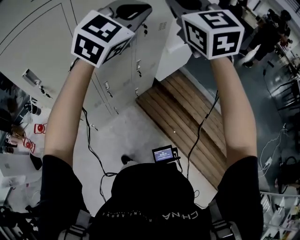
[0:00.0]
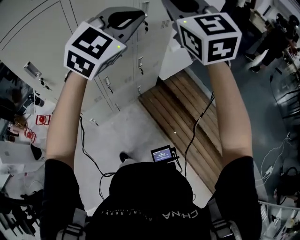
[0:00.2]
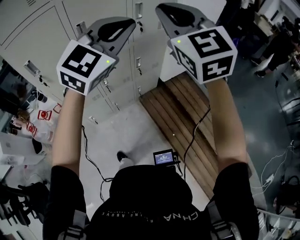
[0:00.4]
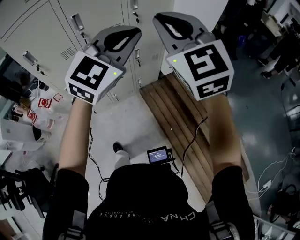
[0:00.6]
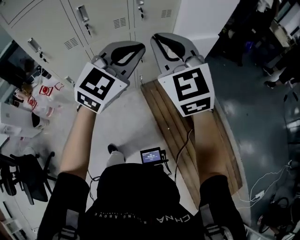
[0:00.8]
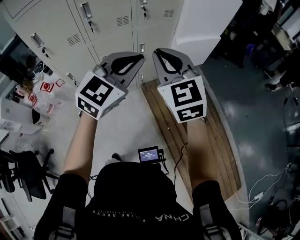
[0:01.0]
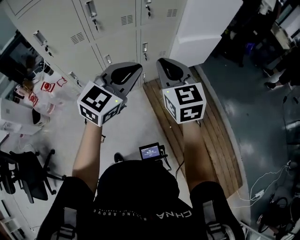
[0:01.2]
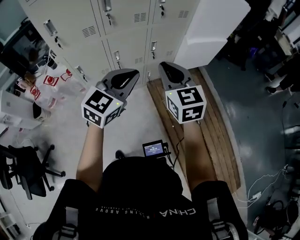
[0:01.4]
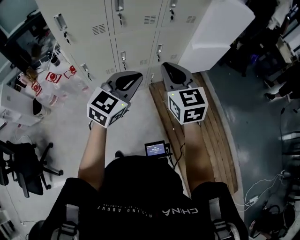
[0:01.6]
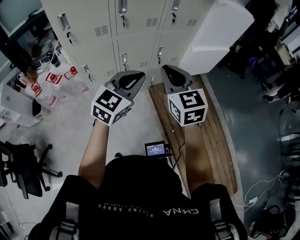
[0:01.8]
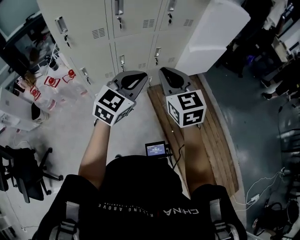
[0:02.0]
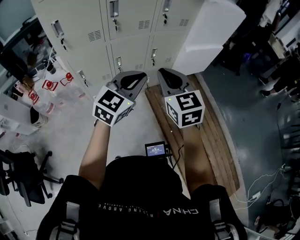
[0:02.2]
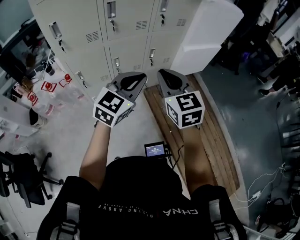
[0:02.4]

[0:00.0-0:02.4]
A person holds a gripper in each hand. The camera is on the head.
0.0 to 1.2 s: Both grippers move downward, backward and to the right, roughly 30 cm. The right gripper rotates approximately 30 degrees; the left gripper rotates roughly 30 degrees.
1.2 to 2.4 s: The grippers both shift to the left by about 10 cm.

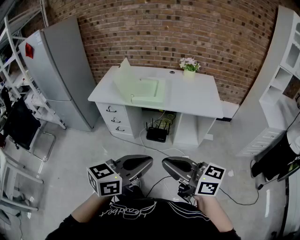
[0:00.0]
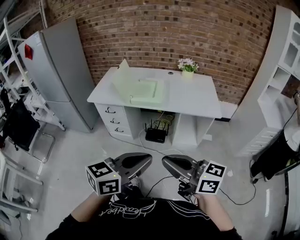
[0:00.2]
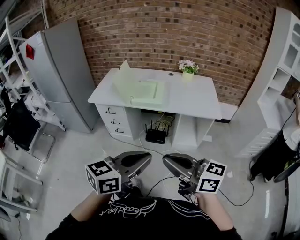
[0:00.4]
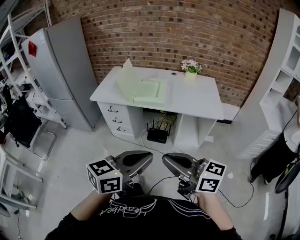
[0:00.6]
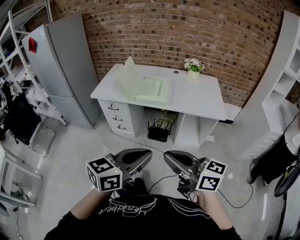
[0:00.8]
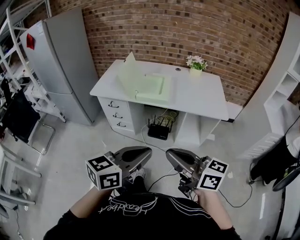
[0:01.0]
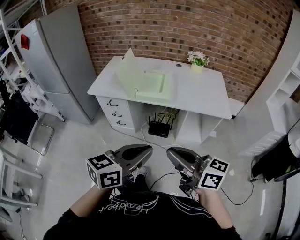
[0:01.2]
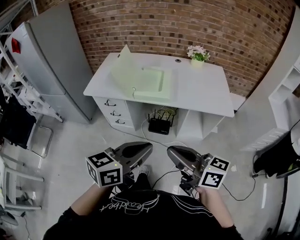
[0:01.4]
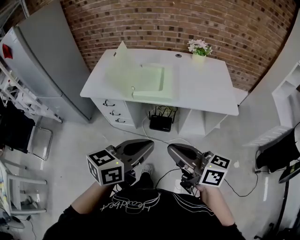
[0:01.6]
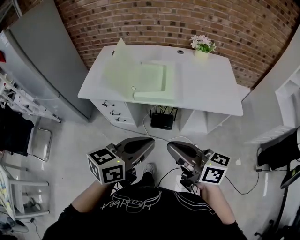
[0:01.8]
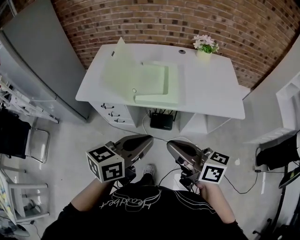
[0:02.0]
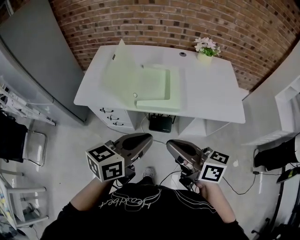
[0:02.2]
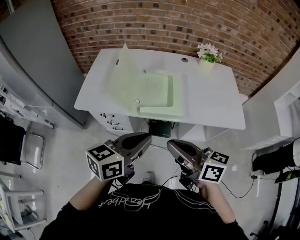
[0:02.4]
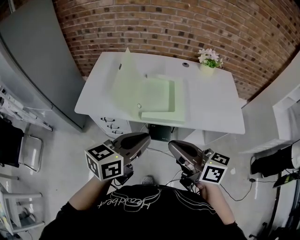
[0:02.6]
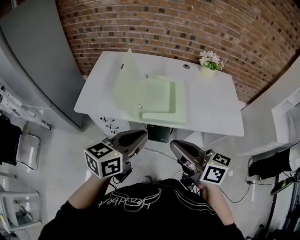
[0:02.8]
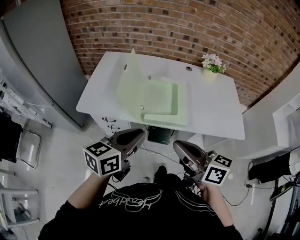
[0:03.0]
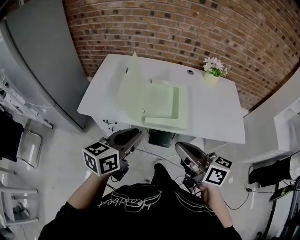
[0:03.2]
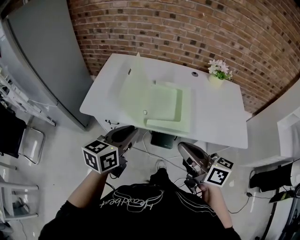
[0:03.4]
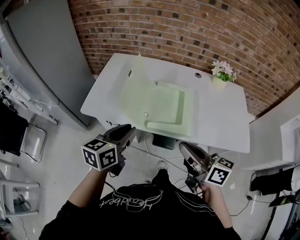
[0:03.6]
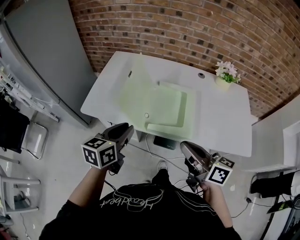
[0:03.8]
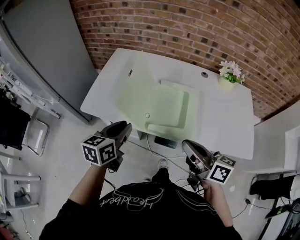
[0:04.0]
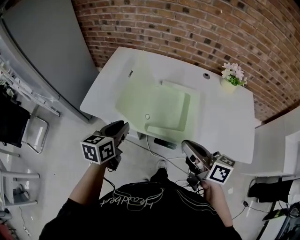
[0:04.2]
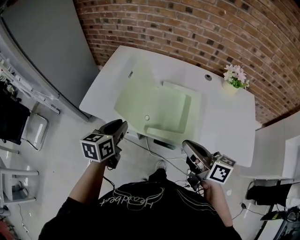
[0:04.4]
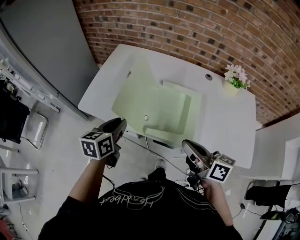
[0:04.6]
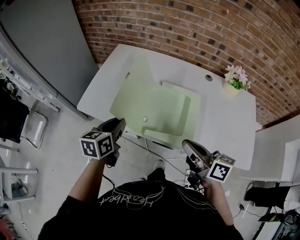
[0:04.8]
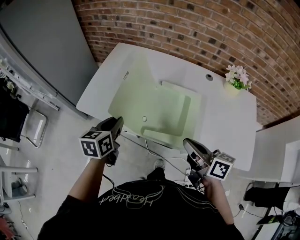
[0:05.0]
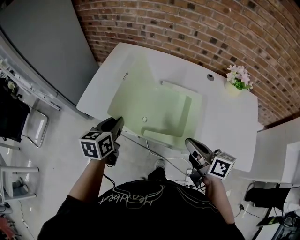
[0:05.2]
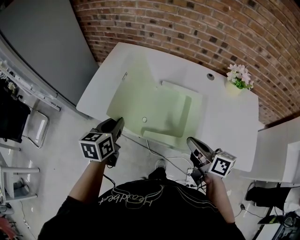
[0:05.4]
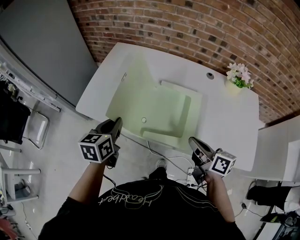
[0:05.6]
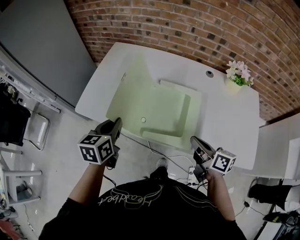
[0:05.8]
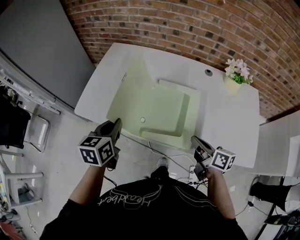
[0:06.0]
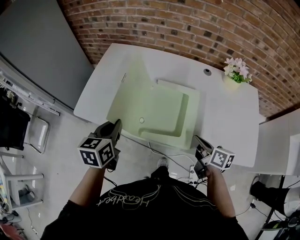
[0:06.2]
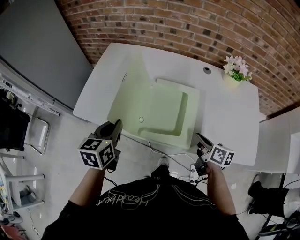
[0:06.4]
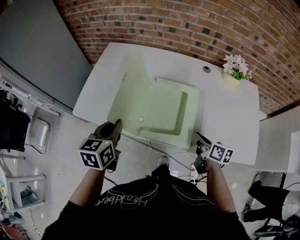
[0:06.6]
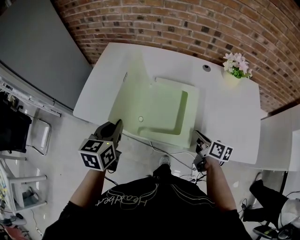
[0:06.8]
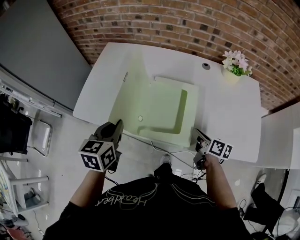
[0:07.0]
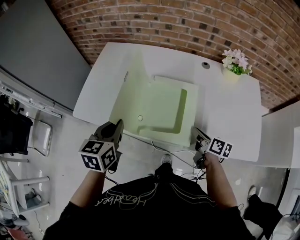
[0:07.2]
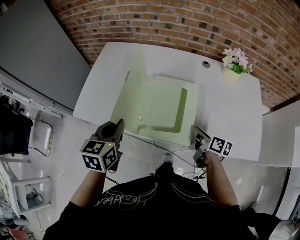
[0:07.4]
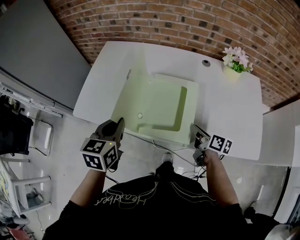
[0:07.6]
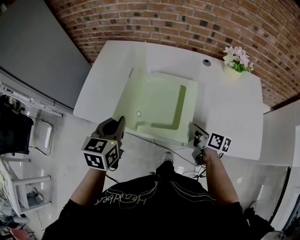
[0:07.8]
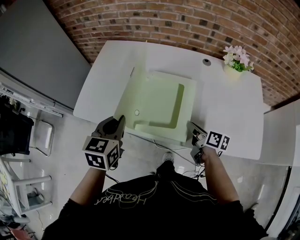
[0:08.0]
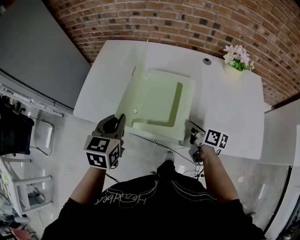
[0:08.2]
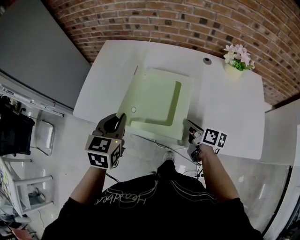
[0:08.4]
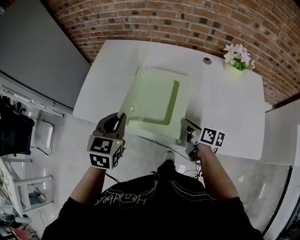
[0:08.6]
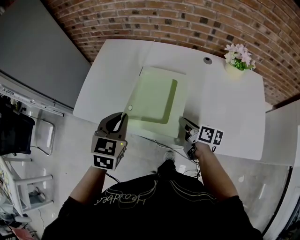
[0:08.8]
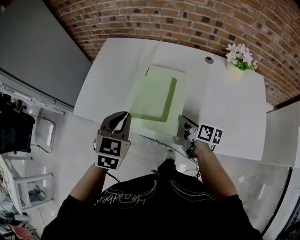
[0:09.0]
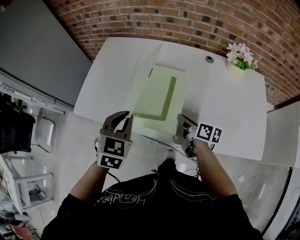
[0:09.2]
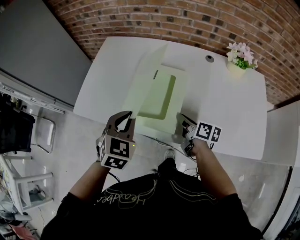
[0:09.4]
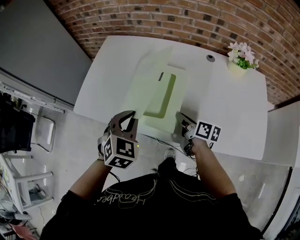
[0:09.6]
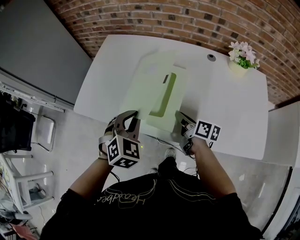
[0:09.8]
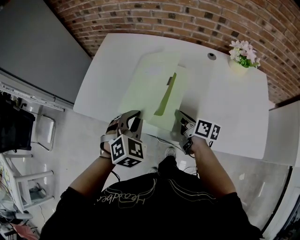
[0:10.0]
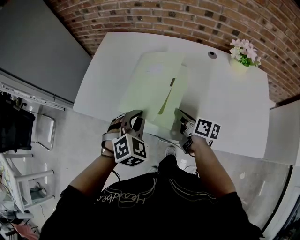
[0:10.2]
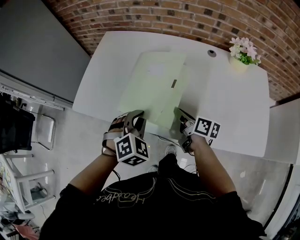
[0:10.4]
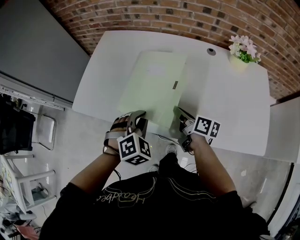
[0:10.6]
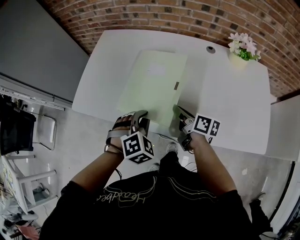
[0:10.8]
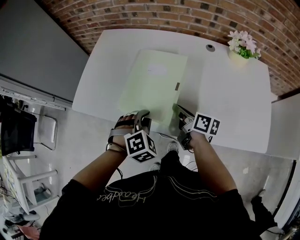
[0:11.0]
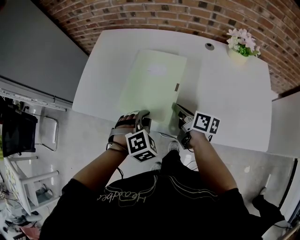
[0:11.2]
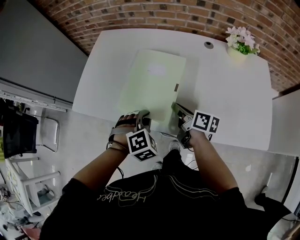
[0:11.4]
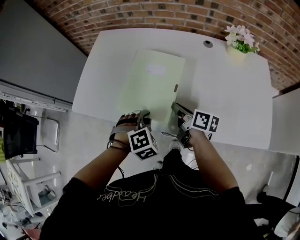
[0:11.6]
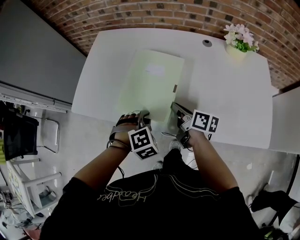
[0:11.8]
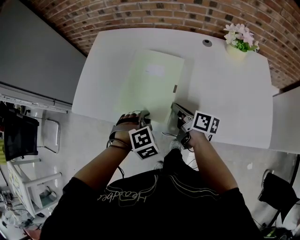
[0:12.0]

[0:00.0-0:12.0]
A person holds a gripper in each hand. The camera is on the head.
0.0 to 1.6 s: Both grippers move forward, roughly 20 cm.
1.6 to 3.0 s: Both grippers move forward and to the left, about 20 cm.
3.0 to 4.4 s: The left gripper heads forward, downward and to the left, covering some 20 cm, and swivels some 30 degrees; the right gripper shifts some 15 cm forward and to the right.
4.4 to 6.0 s: The right gripper goes about 15 cm downward and to the right.
6.0 to 7.6 s: The right gripper shifts some 10 cm downward.
7.6 to 9.0 s: The right gripper is displaced to the left by approximately 5 cm; the left gripper swivels about 20 degrees.
9.0 to 10.4 s: The left gripper heads downward, covering approximately 5 cm, and turns by roughly 30 degrees.
10.4 to 12.0 s: The left gripper heads downward, covering roughly 5 cm, and turns by some 20 degrees.

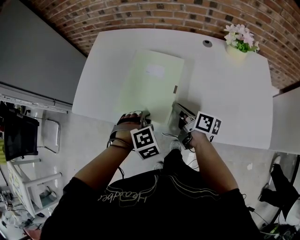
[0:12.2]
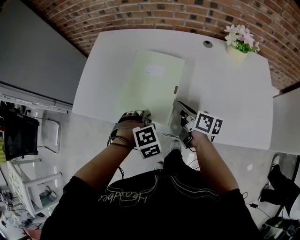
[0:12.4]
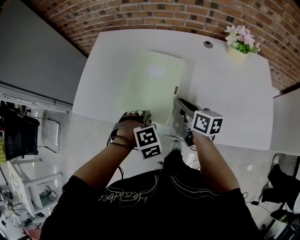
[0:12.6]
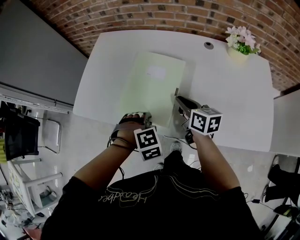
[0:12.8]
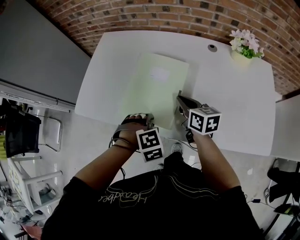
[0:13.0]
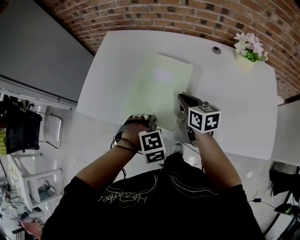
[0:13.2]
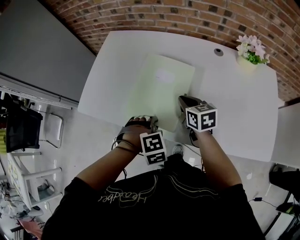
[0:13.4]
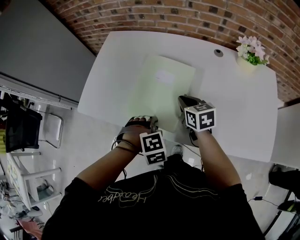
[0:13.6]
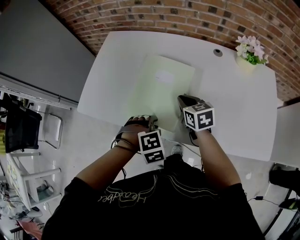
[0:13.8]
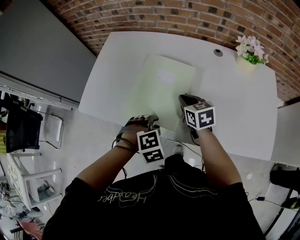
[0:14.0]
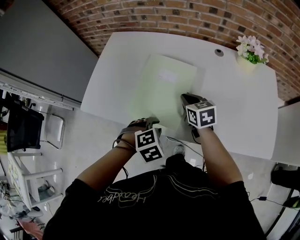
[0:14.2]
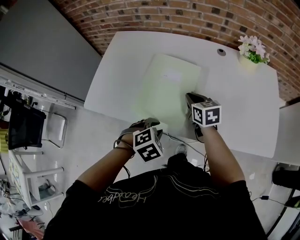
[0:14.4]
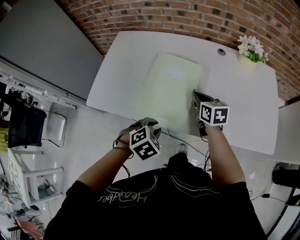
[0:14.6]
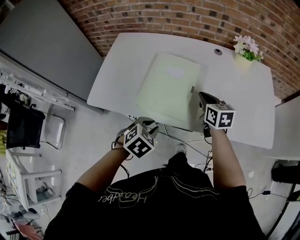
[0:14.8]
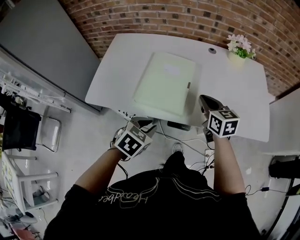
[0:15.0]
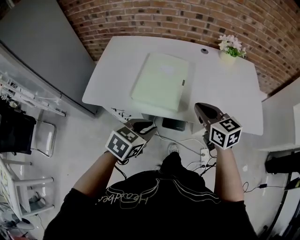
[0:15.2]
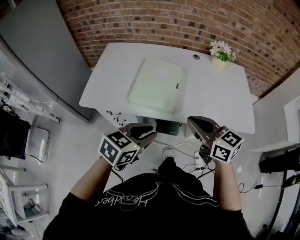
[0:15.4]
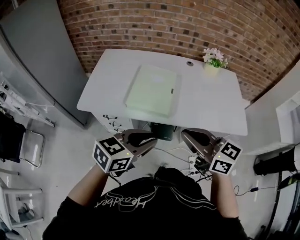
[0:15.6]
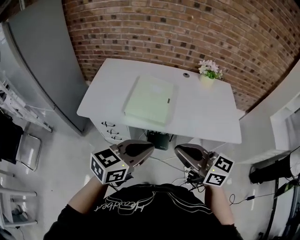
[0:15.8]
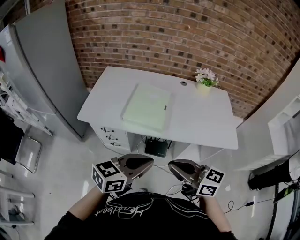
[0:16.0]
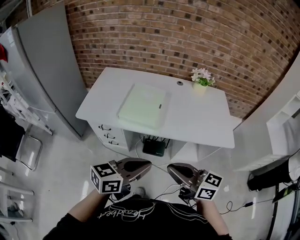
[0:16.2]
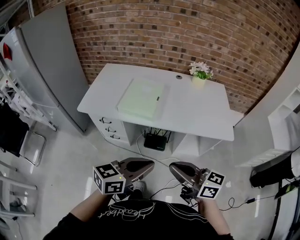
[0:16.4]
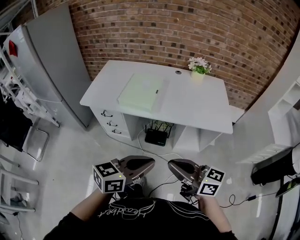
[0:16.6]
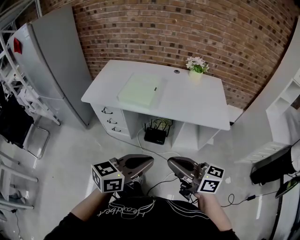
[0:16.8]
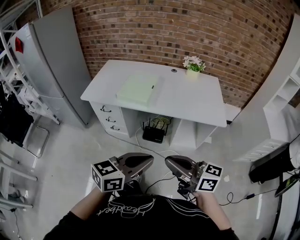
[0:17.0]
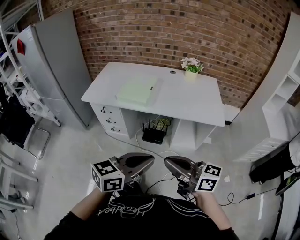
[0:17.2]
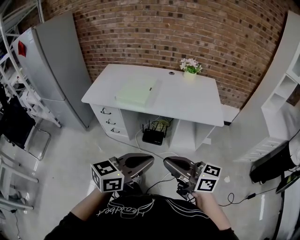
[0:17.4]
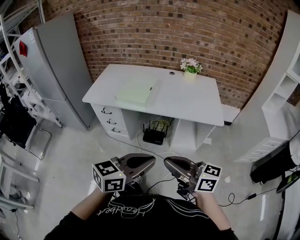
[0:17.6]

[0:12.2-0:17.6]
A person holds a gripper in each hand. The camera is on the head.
12.2 to 13.6 s: The right gripper heads forward, covering approximately 5 cm, and rolls counterclockwise, seen from behind, by roughly 50 degrees.
13.6 to 15.0 s: The right gripper moves approximately 15 cm. The left gripper moves some 10 cm, and rotates roughly 50 degrees.
15.0 to 16.2 s: The left gripper heads backward, upward and to the right, covering some 25 cm, tips its fingers upward by approximately 50 degrees, and closes its fingers. Meanwhile the right gripper travels backward and upward by approximately 35 cm, and rotates roughly 40 degrees.
16.2 to 17.6 s: The two grippers go some 20 cm backward and to the right.

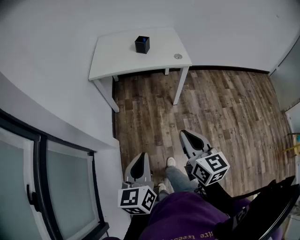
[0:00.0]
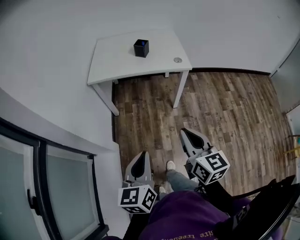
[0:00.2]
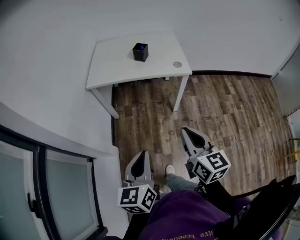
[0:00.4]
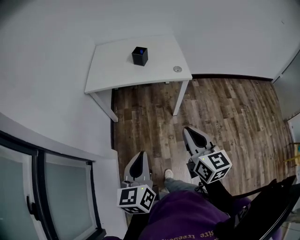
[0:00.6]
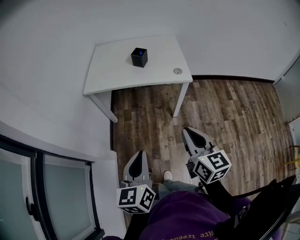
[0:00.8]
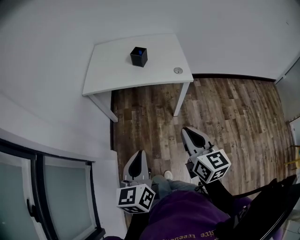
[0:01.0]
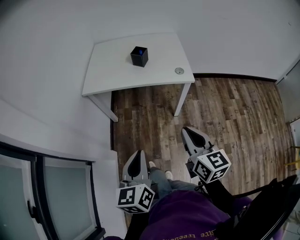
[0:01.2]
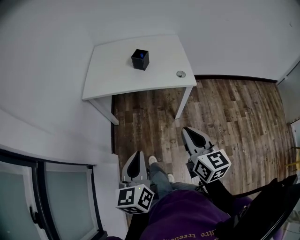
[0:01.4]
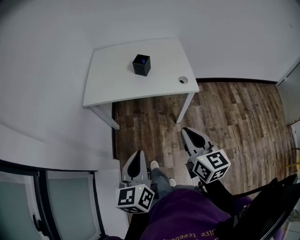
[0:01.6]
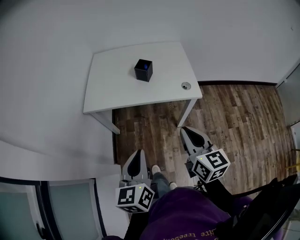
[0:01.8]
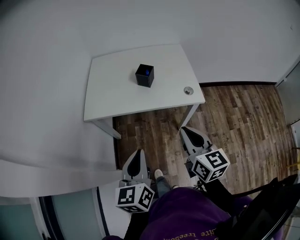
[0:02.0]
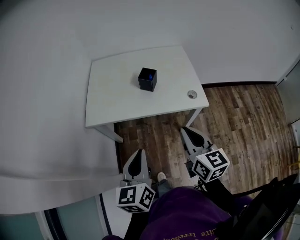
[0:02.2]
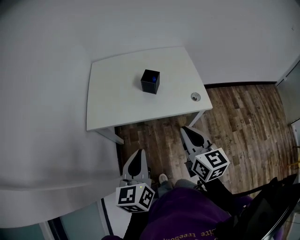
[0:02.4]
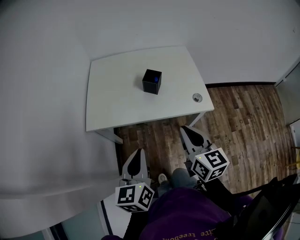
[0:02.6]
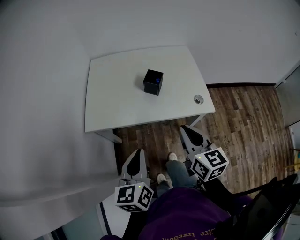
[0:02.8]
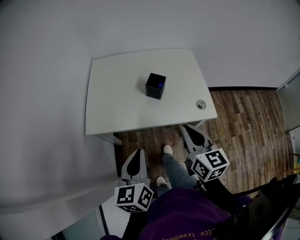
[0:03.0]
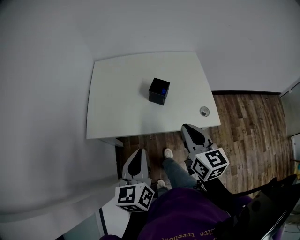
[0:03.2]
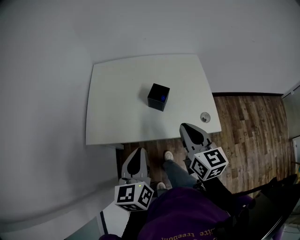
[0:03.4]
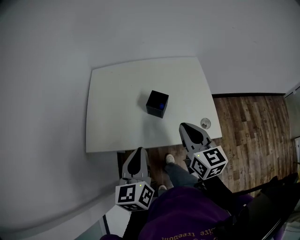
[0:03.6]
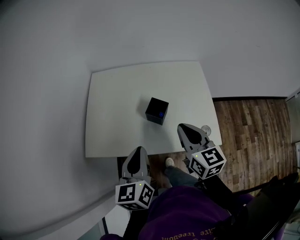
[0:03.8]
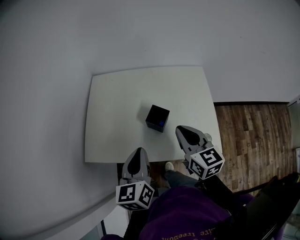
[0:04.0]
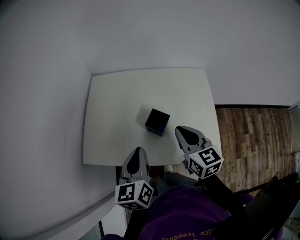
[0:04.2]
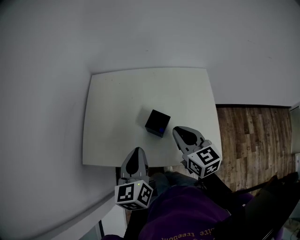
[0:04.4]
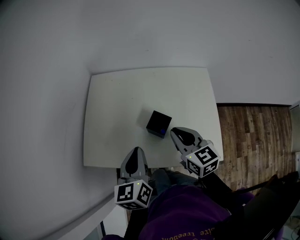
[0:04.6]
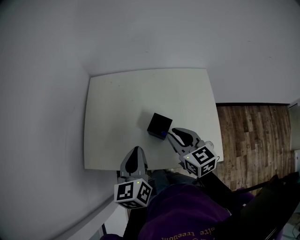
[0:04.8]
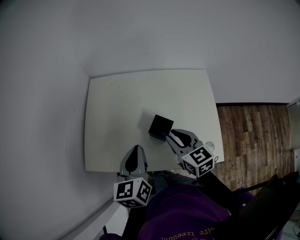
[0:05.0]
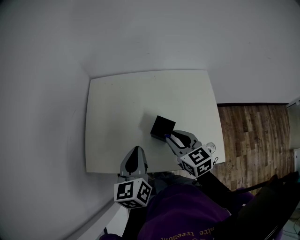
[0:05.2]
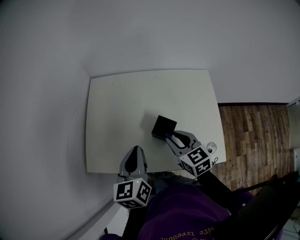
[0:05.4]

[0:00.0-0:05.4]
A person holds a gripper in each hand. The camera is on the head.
0.0 to 1.4 s: The left gripper shifts some 20 cm forward. The right gripper travels forward and to the right by approximately 20 cm.
1.4 to 2.8 s: The two grippers go some 25 cm forward.
2.8 to 4.0 s: The two grippers go about 20 cm forward.
4.0 to 5.4 s: The right gripper heads downward and forward, covering about 10 cm, and opens. Meanwhile the left gripper travels forward by approximately 10 cm.
